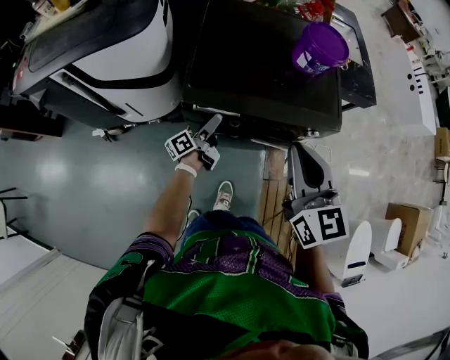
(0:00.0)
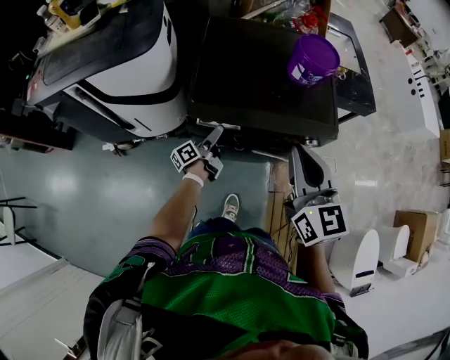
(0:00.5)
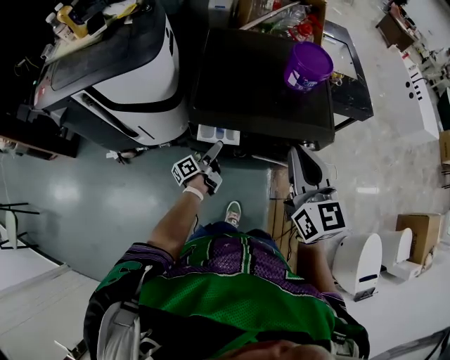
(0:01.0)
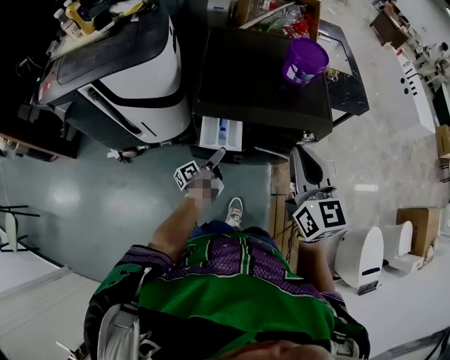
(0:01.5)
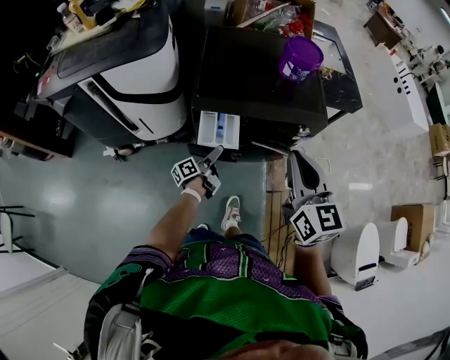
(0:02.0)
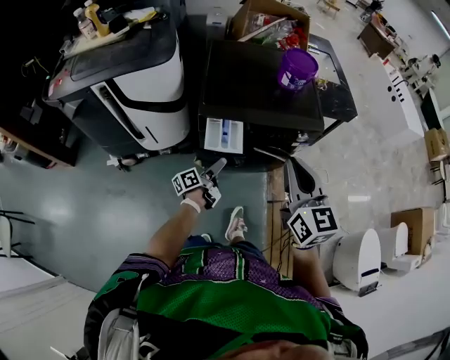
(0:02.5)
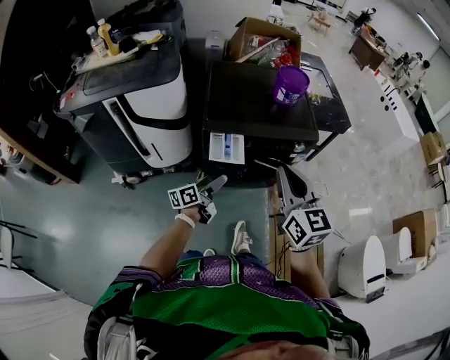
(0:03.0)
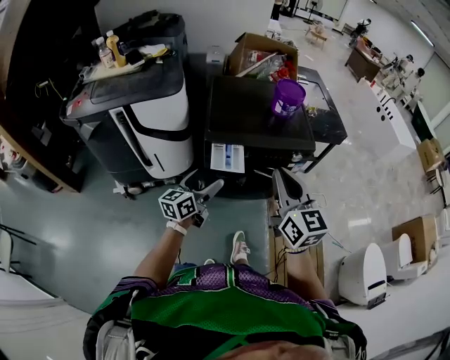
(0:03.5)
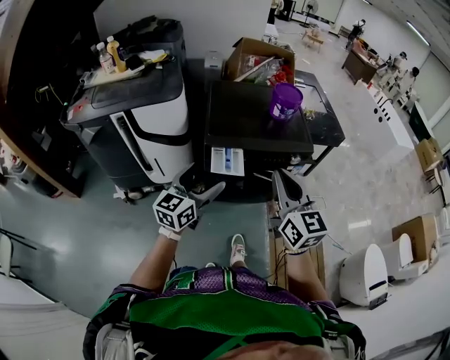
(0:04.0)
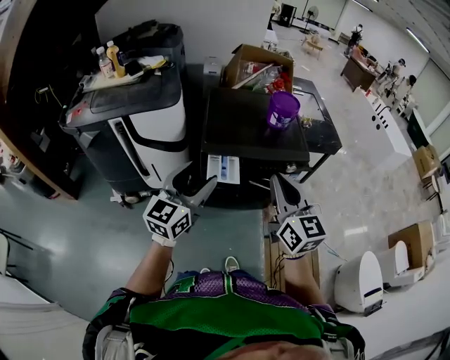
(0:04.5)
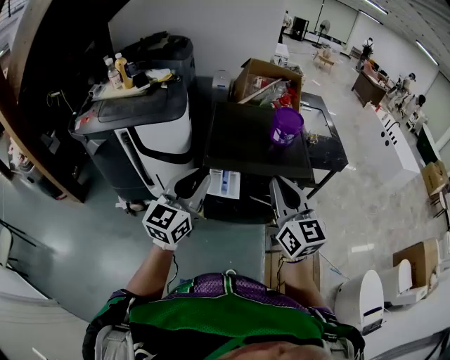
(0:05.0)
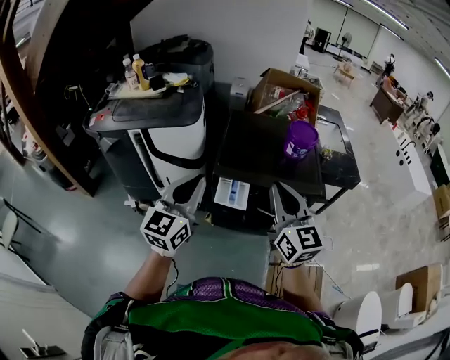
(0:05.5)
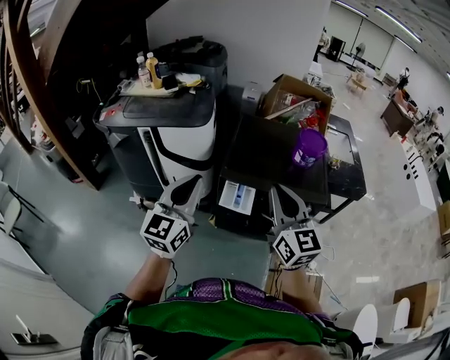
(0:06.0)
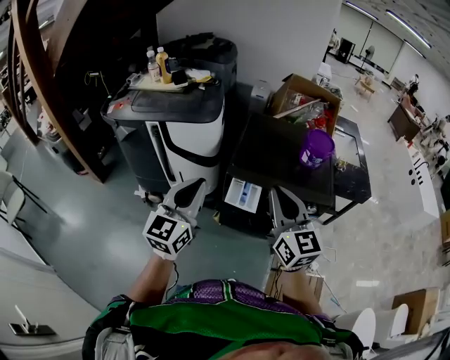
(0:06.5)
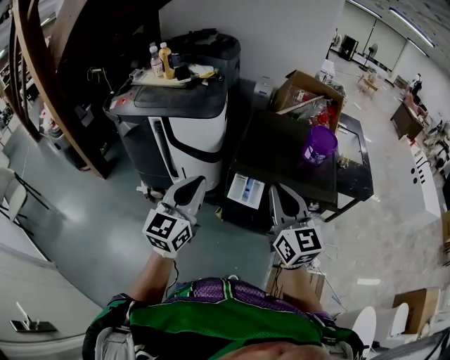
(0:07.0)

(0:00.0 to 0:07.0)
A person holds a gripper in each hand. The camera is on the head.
0:00.0 - 0:02.0: Both grippers travel together backward, roughly 10 cm.
0:02.0 - 0:03.5: The right gripper moves backward, upward and to the left, about 15 cm; the left gripper shifts approximately 25 cm upward and backward, and rotates around the line of its fingers by about 50 degrees, clockwise from behind.
0:03.5 - 0:05.0: The right gripper shifts roughly 5 cm upward. The left gripper heads upward, covering about 20 cm, turns by roughly 30 degrees, and closes its fingers.
0:05.0 - 0:07.0: Both grippers travel together to the left, some 5 cm.

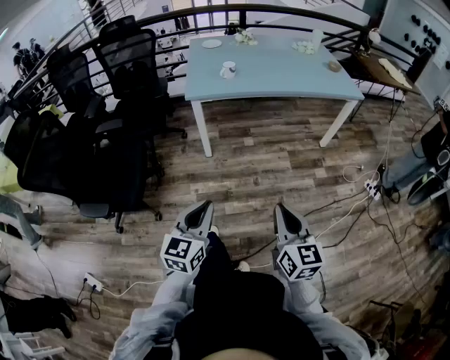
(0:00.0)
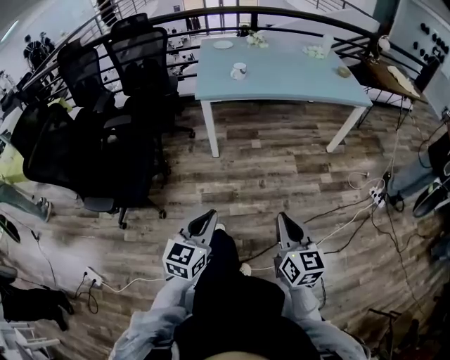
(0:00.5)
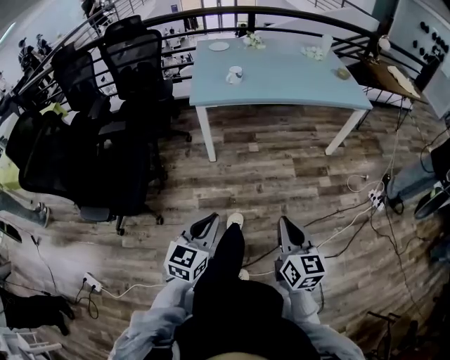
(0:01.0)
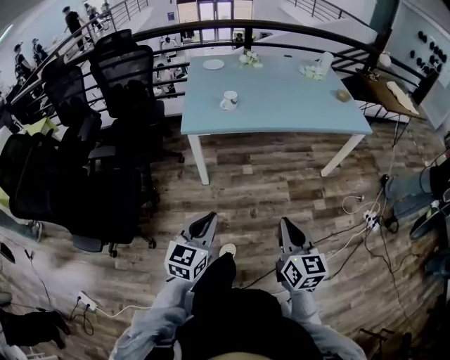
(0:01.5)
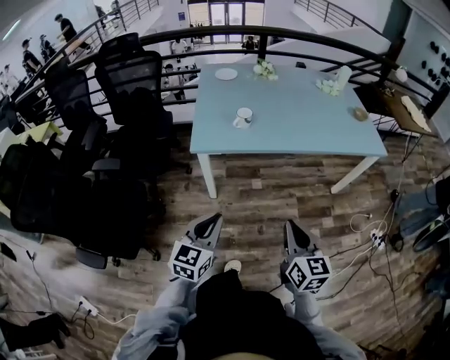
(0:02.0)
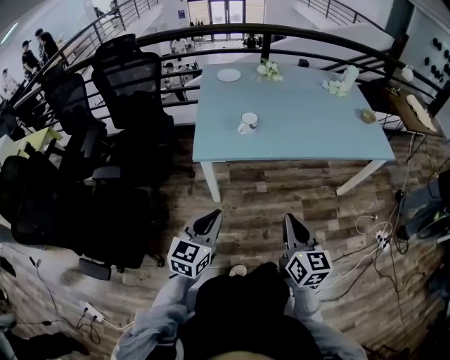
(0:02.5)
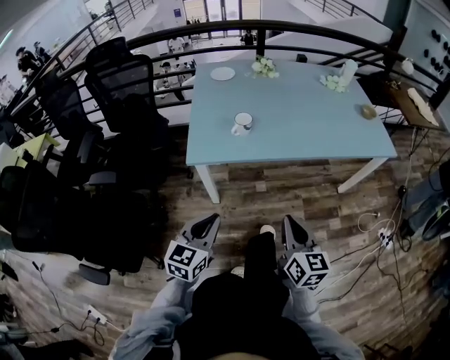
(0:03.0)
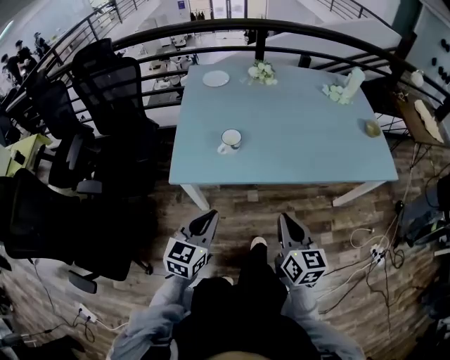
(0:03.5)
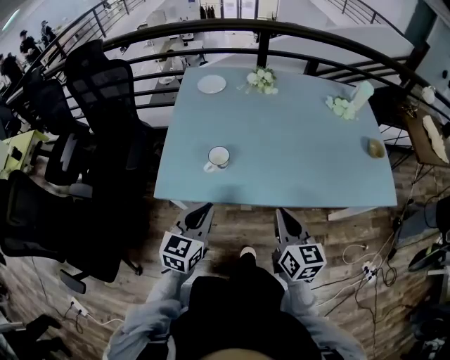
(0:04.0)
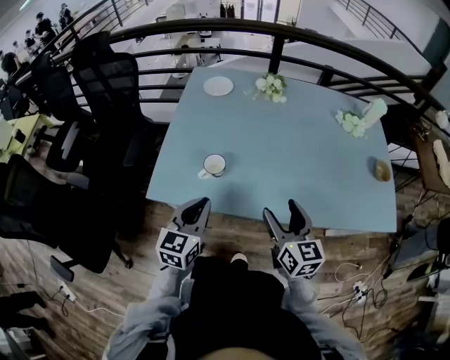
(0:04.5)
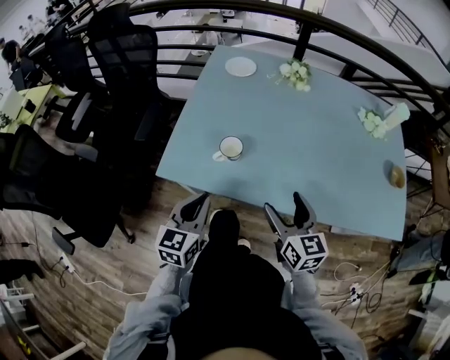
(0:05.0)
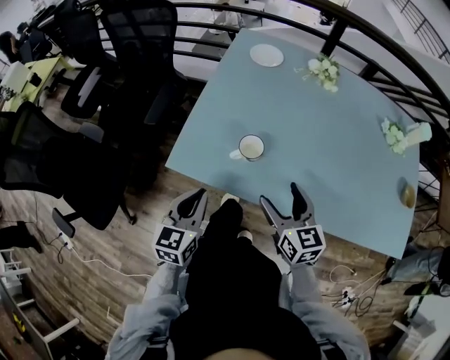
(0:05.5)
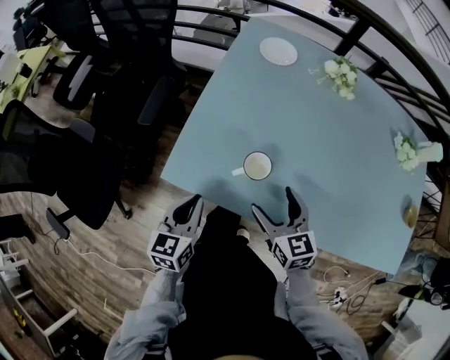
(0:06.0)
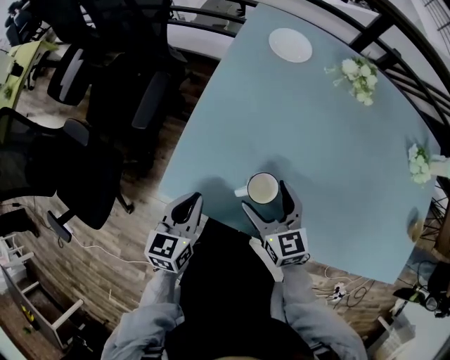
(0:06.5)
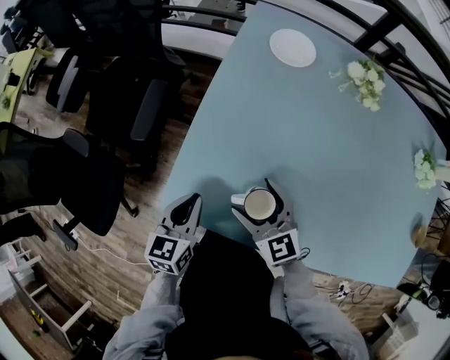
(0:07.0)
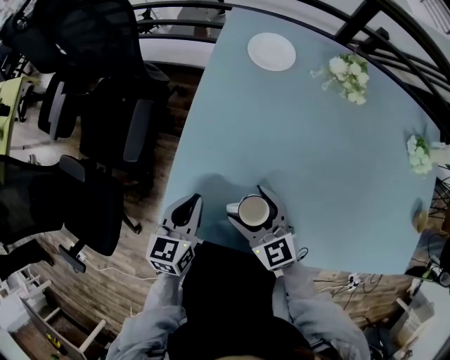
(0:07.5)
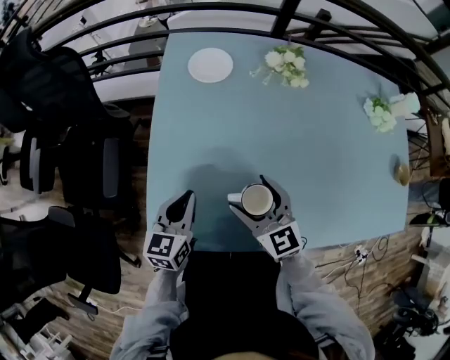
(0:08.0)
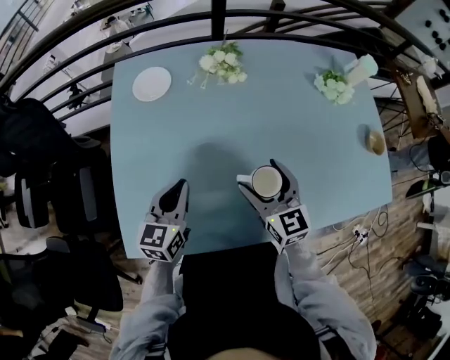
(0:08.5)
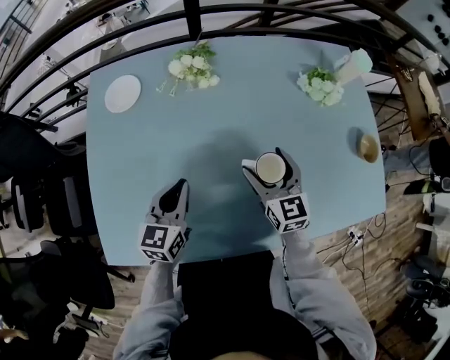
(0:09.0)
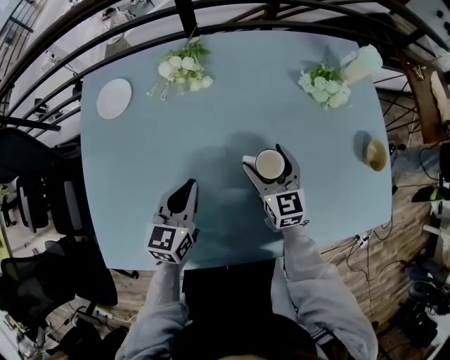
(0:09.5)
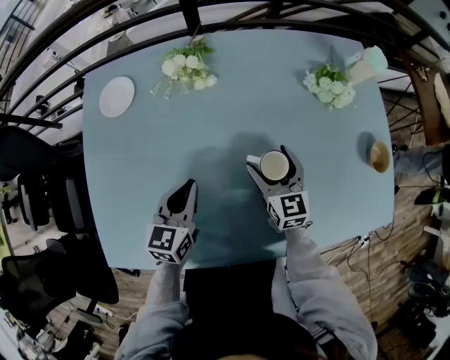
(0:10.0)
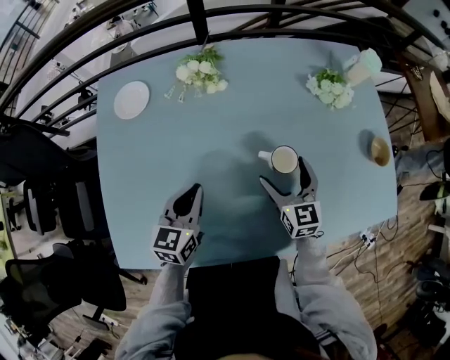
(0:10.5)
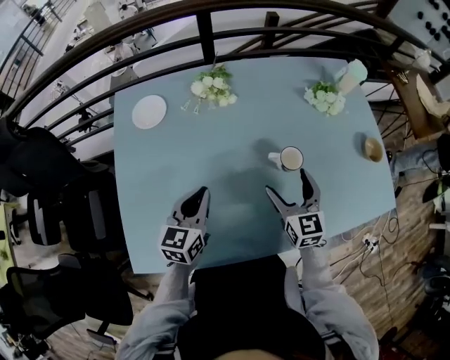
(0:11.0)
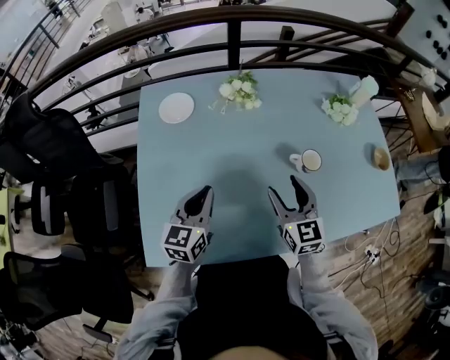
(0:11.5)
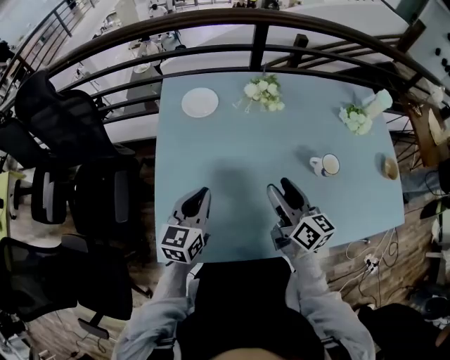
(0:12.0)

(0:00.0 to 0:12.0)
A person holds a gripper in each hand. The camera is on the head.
0:00.0 - 0:02.0: The two grippers go some 30 cm forward.
0:02.0 - 0:04.0: The two grippers go roughly 35 cm forward.
0:04.0 - 0:06.0: The left gripper shifts by some 15 cm, and rotates some 30 degrees; the right gripper ends up some 20 cm from where it was, turns by about 30 degrees, and opens.
0:06.0 - 0:08.0: The left gripper heads forward and to the right, covering about 20 cm, while the right gripper travels forward by roughly 15 cm.
0:08.0 - 0:10.0: The left gripper heads to the right, covering about 30 cm. Meanwhile the right gripper heads to the right and forward, covering approximately 35 cm, and changes its angle by approximately 20 degrees.
0:10.0 - 0:12.0: The left gripper shifts about 25 cm to the left and backward. The right gripper moves to the left, backward and upward, approximately 25 cm, and turns by about 40 degrees.

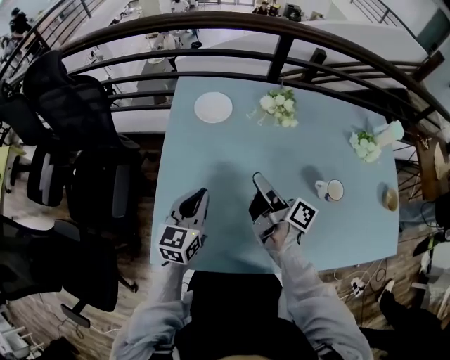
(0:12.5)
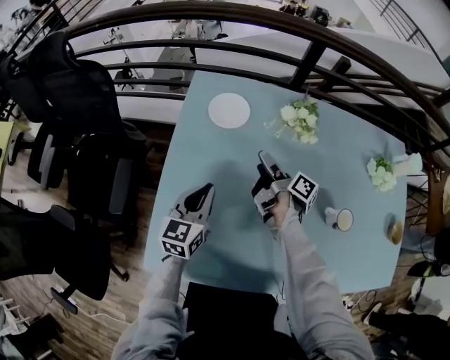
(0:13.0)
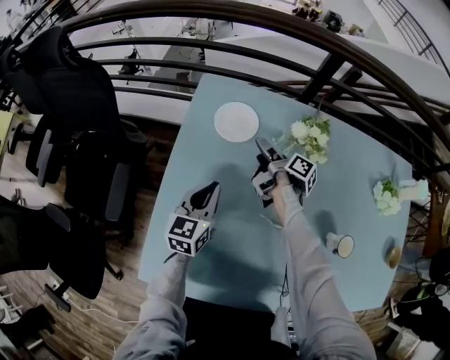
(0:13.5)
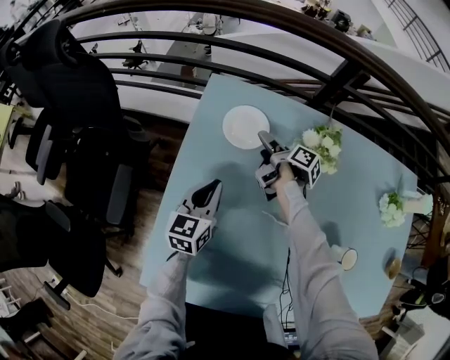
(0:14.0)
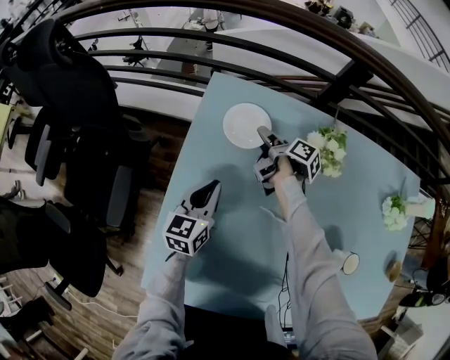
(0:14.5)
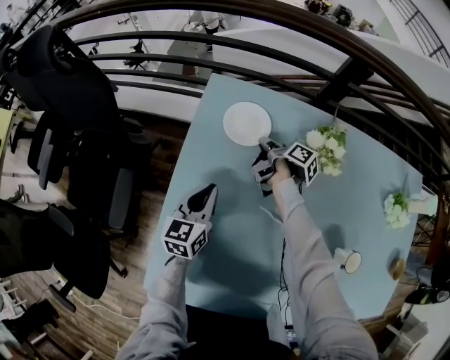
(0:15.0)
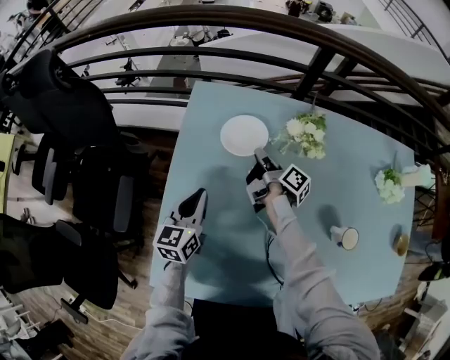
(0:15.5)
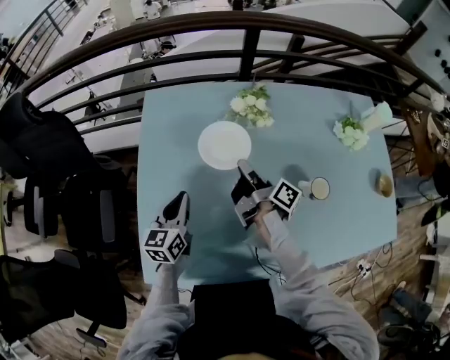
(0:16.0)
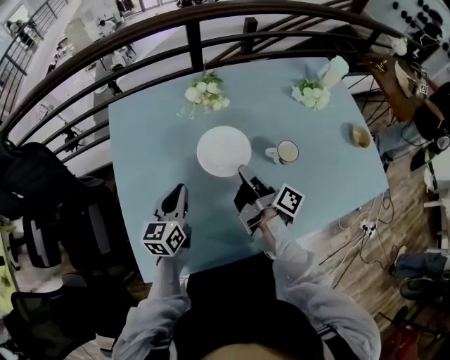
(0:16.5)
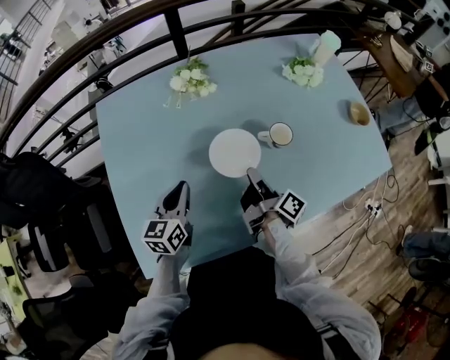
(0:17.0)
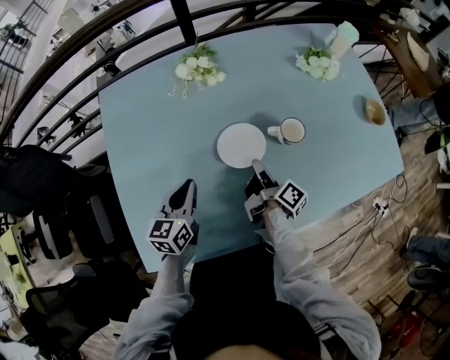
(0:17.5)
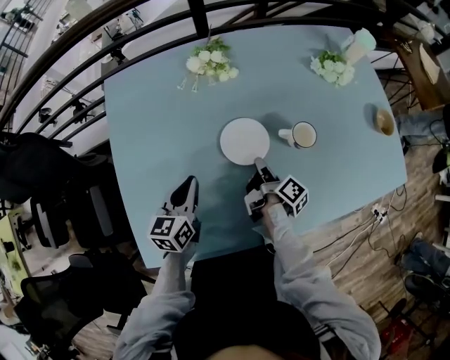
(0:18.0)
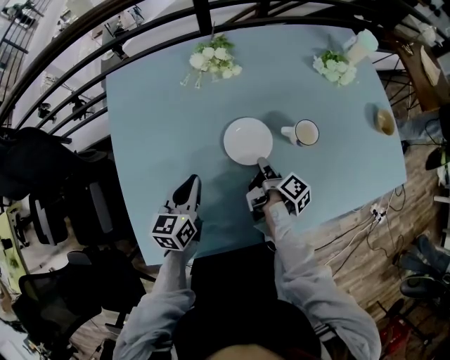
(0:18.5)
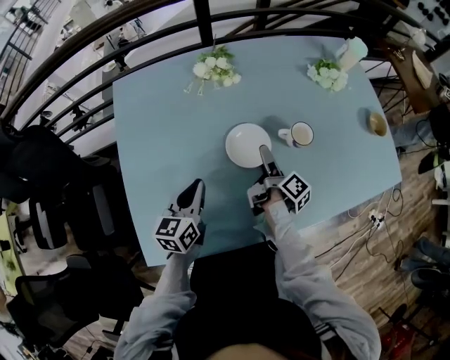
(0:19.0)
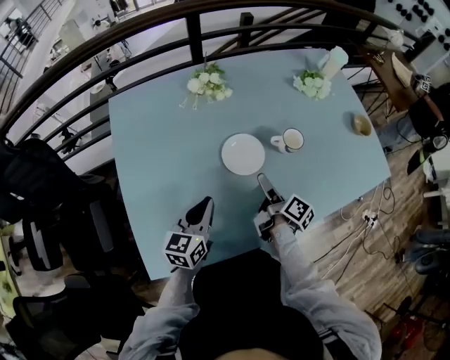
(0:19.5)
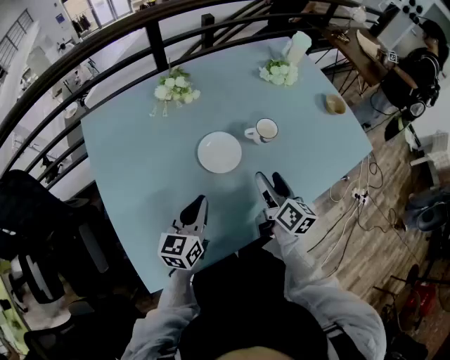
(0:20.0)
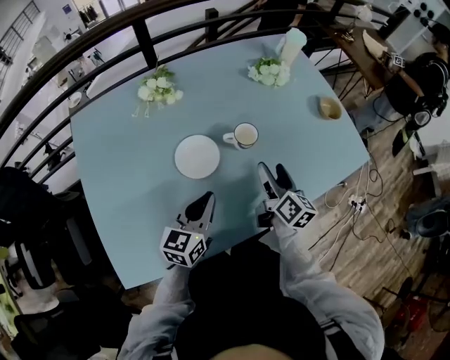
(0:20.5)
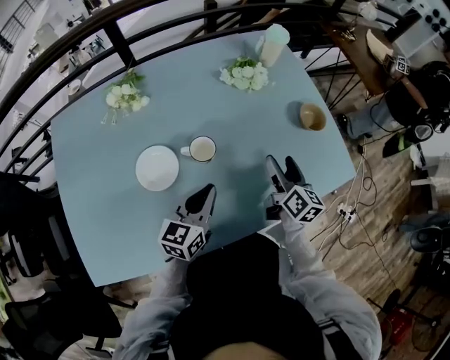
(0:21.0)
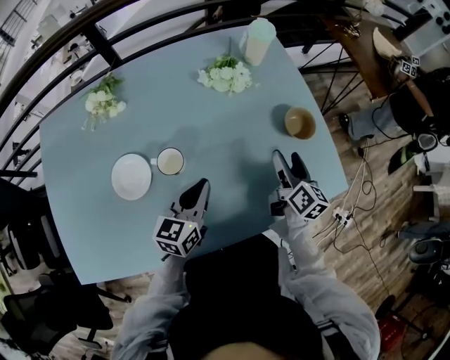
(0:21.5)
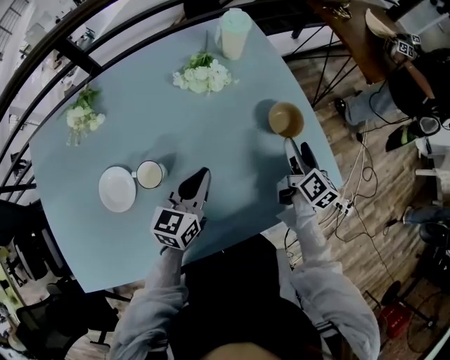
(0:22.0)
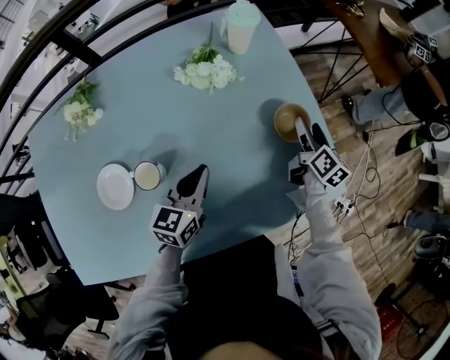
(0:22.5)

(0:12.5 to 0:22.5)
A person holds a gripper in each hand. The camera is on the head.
0:12.5 - 0:14.5: The right gripper shifts about 35 cm forward and downward, and rotates roughly 30 degrees. The left gripper travels forward and downward by roughly 20 cm.
0:14.5 - 0:16.5: The left gripper is displaced backward, to the right and upward by about 20 cm, while the right gripper shifts some 40 cm backward and to the right, changes its angle by some 40 degrees, and closes its fingers.
0:16.5 - 0:18.5: The right gripper goes some 15 cm downward, and swivels about 30 degrees. The left gripper ends up approximately 5 cm from where it was.
0:18.5 - 0:20.5: The right gripper heads to the right and upward, covering about 20 cm, rolls counterclockwise, seen from behind, by about 40 degrees, and opens up. Meanwhile the left gripper shifts some 20 cm to the right, and swivels approximately 20 degrees.
0:20.5 - 0:22.5: The right gripper goes some 50 cm to the right and forward; the left gripper moves forward and to the right, roughly 35 cm.
